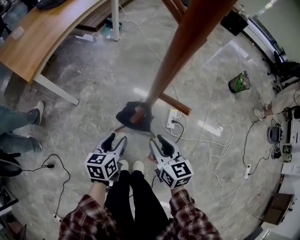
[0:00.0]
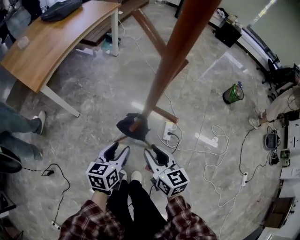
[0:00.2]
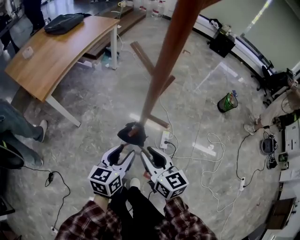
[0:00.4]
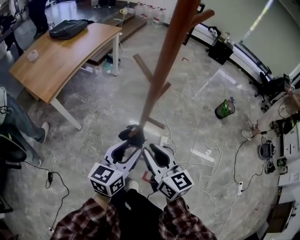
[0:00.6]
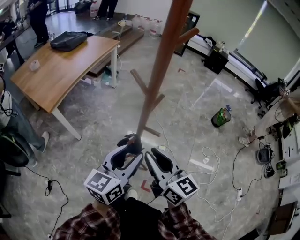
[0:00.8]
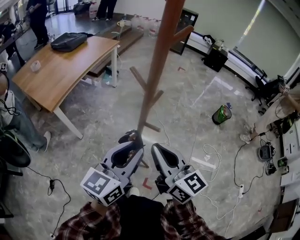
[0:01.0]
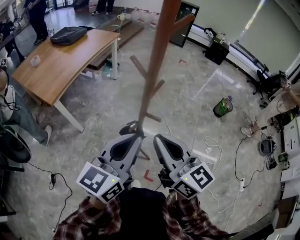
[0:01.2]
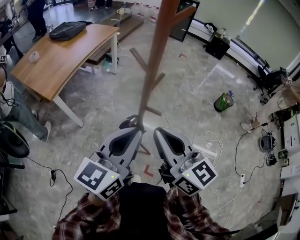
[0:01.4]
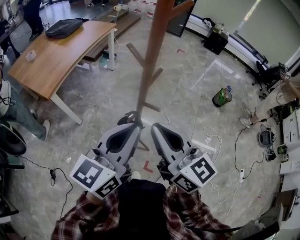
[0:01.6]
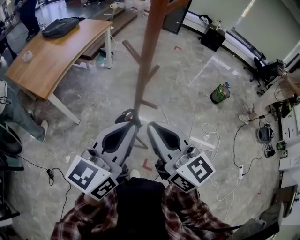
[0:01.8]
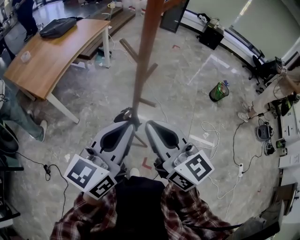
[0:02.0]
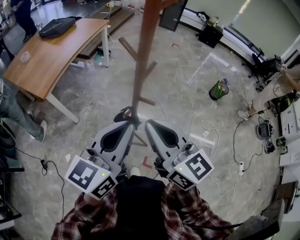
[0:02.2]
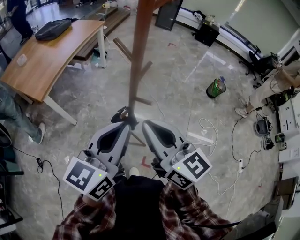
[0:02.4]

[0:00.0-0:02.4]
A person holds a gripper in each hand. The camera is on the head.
0:00.0 to 0:01.2: Both grippers travel together upward, approximately 40 cm. The left gripper tips its fingers upward by some 40 degrees, and closes its fingers; the right gripper rotates roughly 30 degrees, and closes up.
0:01.2 to 0:02.4: The grippers make only small movements.

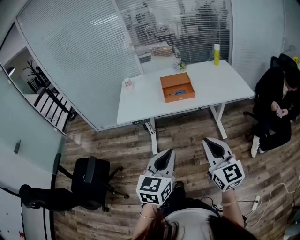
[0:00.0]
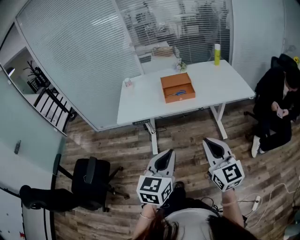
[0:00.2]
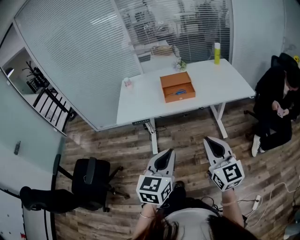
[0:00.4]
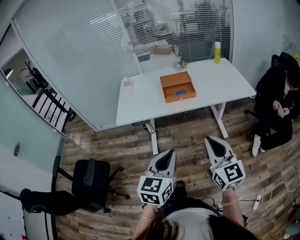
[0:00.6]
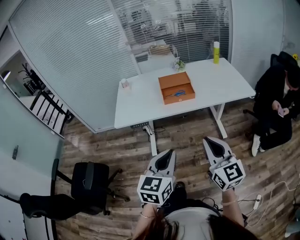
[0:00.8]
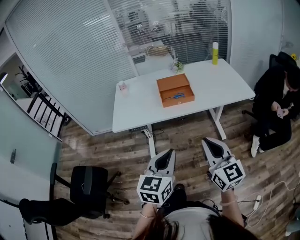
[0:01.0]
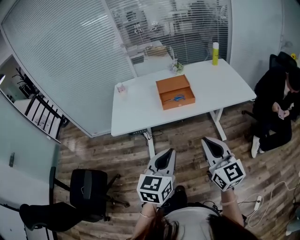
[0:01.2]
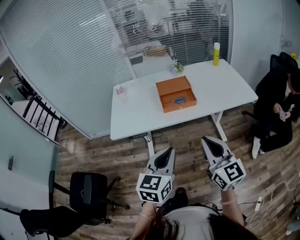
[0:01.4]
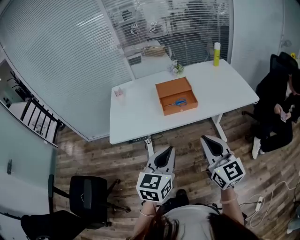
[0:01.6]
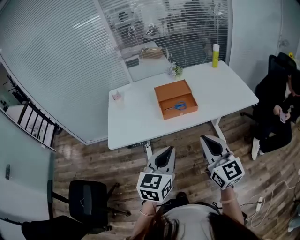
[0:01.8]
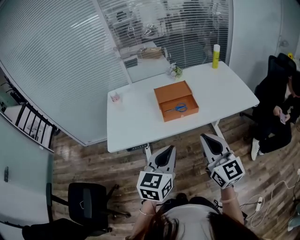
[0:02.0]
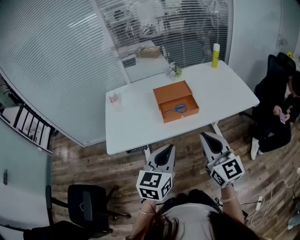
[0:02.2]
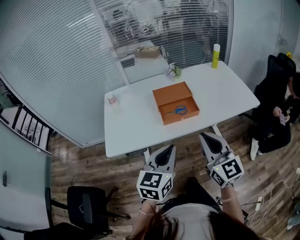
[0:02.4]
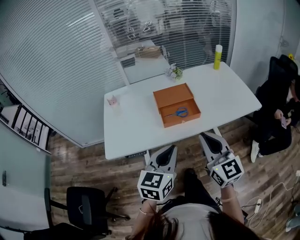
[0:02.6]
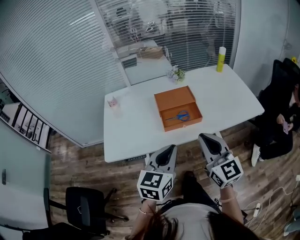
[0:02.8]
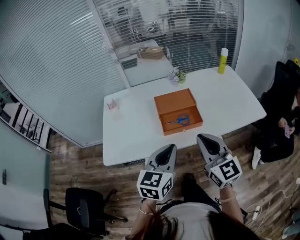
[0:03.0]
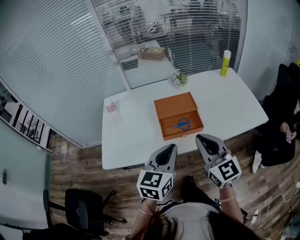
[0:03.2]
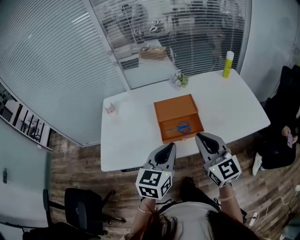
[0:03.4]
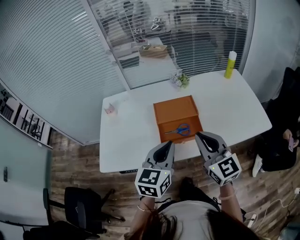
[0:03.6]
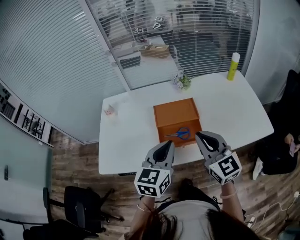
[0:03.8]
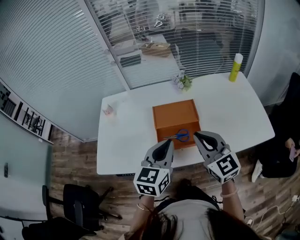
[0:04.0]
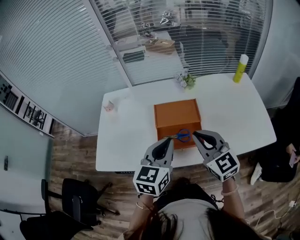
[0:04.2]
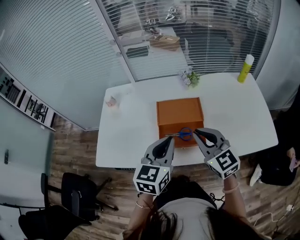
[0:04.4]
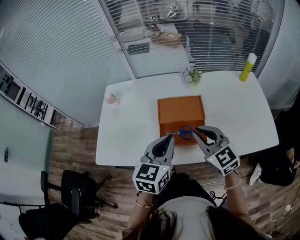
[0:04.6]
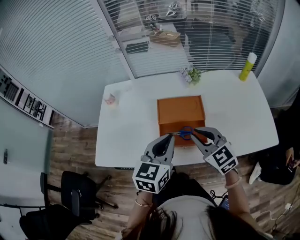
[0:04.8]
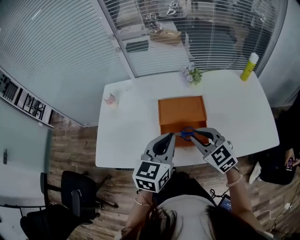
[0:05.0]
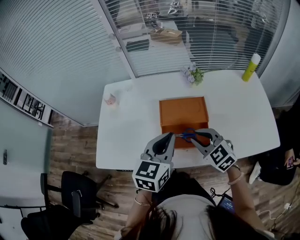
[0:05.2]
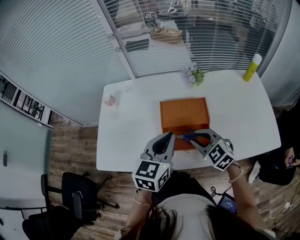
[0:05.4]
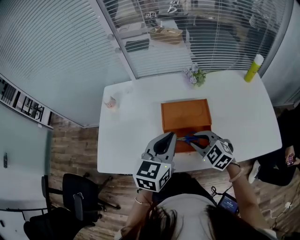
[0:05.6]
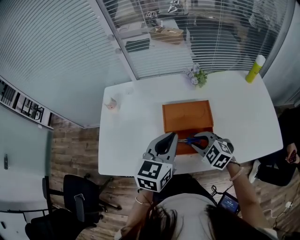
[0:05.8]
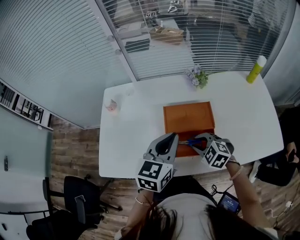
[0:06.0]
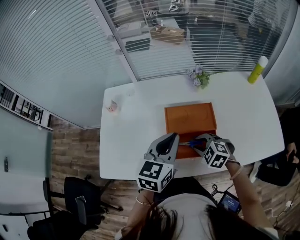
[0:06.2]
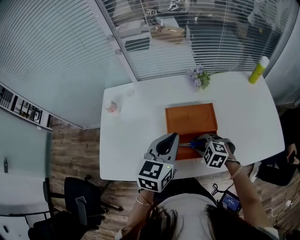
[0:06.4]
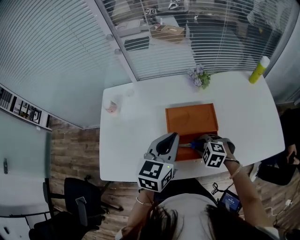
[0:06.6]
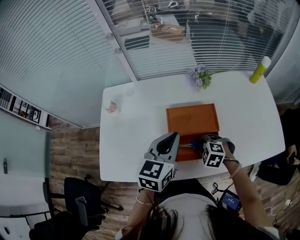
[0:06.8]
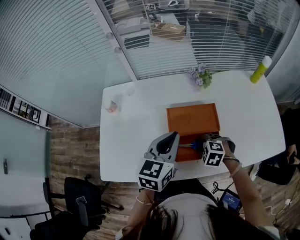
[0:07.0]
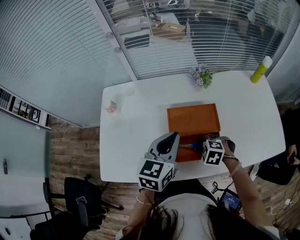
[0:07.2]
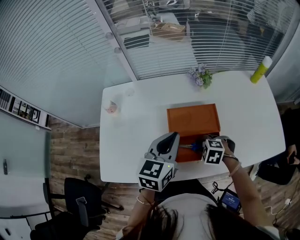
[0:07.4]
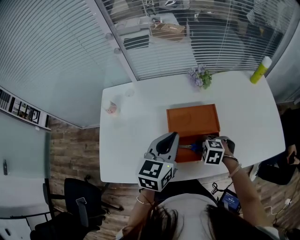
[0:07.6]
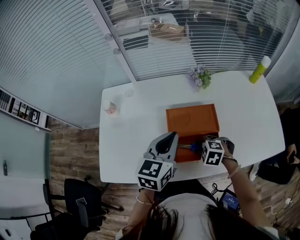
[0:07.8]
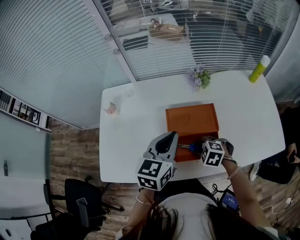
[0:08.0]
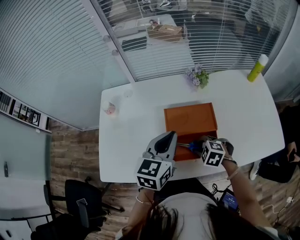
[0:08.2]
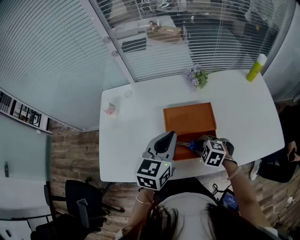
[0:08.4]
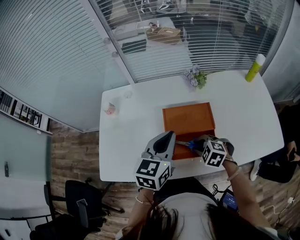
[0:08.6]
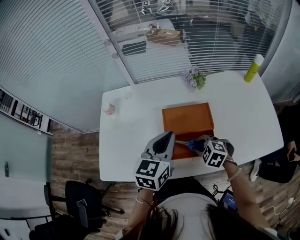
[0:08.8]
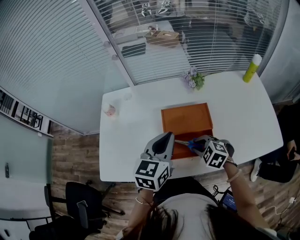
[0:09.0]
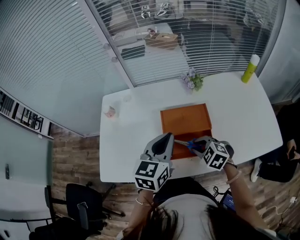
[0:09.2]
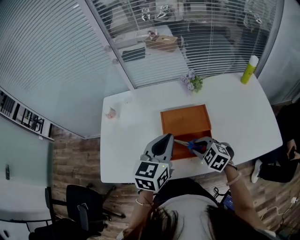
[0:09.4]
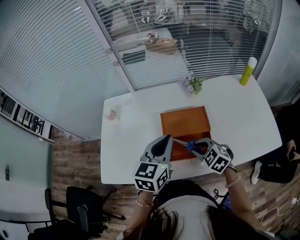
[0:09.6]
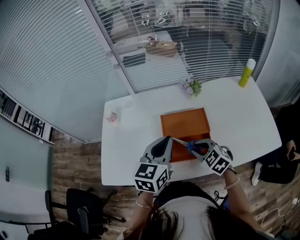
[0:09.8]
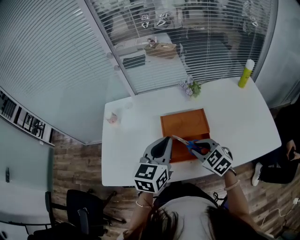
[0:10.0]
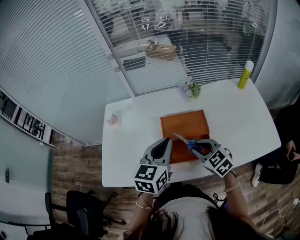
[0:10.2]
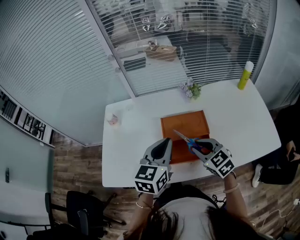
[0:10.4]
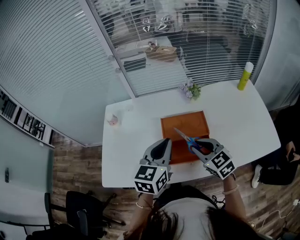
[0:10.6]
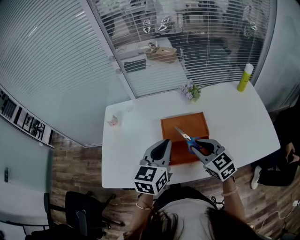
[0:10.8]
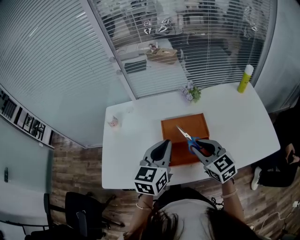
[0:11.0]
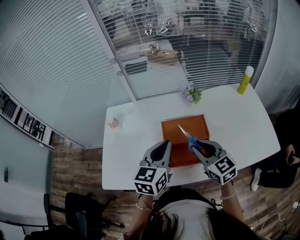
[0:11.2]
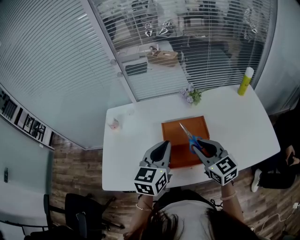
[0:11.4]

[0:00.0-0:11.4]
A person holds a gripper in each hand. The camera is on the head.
0:00.0 to 0:01.4: The two grippers go roughly 15 cm forward.
0:01.4 to 0:02.8: The grippers both shift forward by some 20 cm.
0:02.8 to 0:04.2: Both grippers move forward, approximately 20 cm. The right gripper changes its angle by some 20 degrees.
0:04.2 to 0:05.6: The right gripper goes roughly 15 cm downward and forward, and angles its fingers downward, by approximately 30 degrees; the left gripper travels forward by some 5 cm.
0:05.6 to 0:07.2: The left gripper heads forward, covering approximately 5 cm; the right gripper moves downward, roughly 10 cm, and turns by some 30 degrees.
0:07.2 to 0:08.6: The grippers stay close to where they were, moving slightly.
0:08.6 to 0:10.0: The right gripper moves upward, roughly 10 cm, and changes its angle by about 30 degrees.
0:10.0 to 0:11.4: The right gripper is displaced upward by some 10 cm, and swivels roughly 30 degrees.

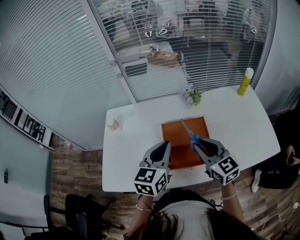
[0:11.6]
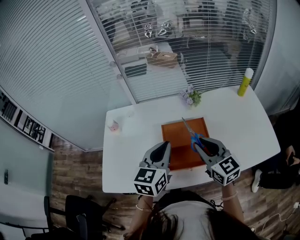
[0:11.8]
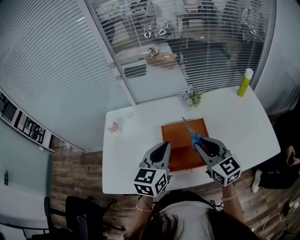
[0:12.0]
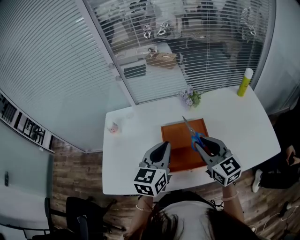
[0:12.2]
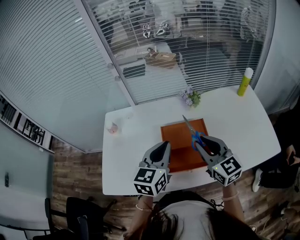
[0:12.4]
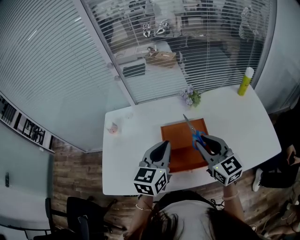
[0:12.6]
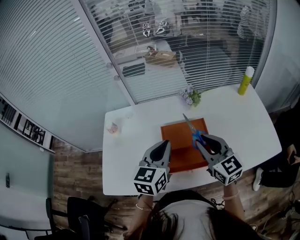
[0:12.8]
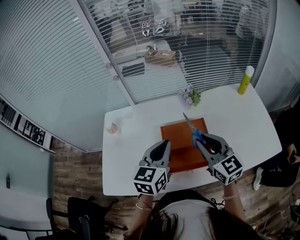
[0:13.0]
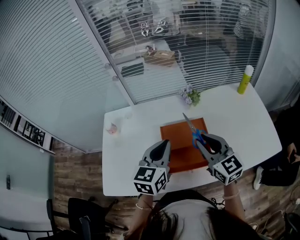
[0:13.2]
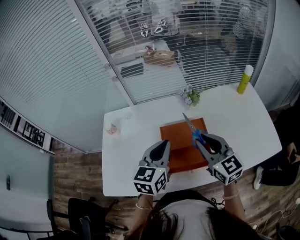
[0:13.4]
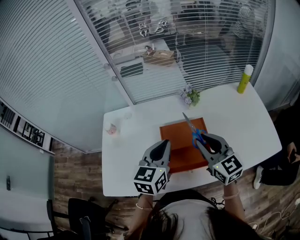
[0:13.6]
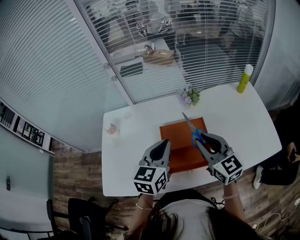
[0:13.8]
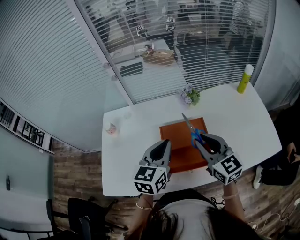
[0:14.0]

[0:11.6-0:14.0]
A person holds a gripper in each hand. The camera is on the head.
0:11.6 to 0:12.8: There are only small adjustments of the grippers.
0:12.8 to 0:14.0: Both grippers stay about where they are.

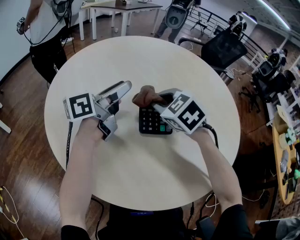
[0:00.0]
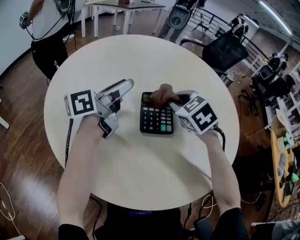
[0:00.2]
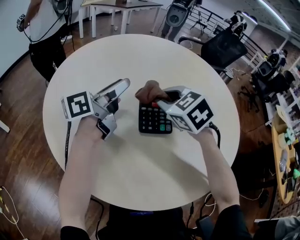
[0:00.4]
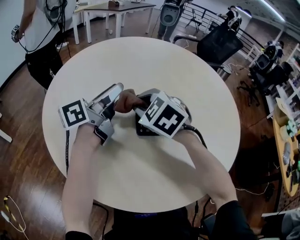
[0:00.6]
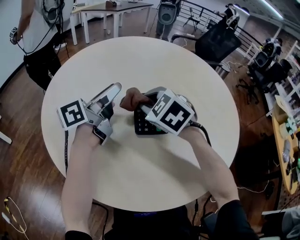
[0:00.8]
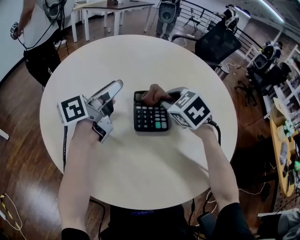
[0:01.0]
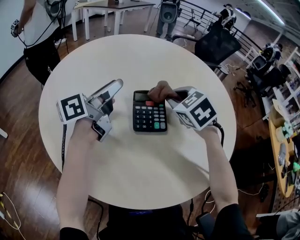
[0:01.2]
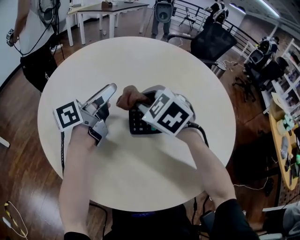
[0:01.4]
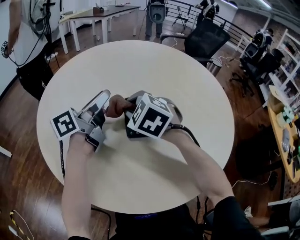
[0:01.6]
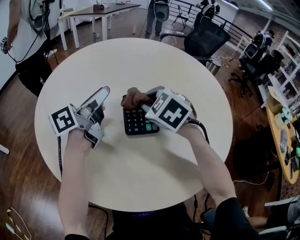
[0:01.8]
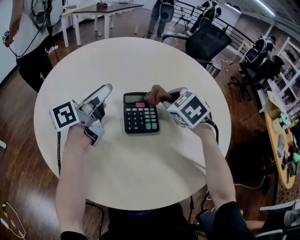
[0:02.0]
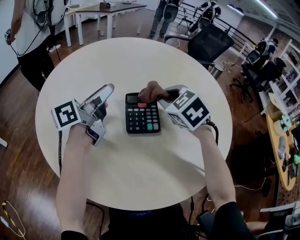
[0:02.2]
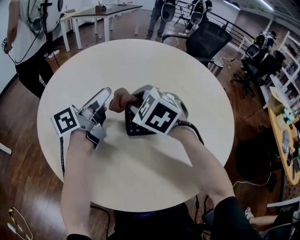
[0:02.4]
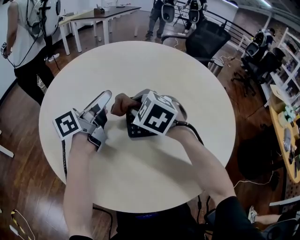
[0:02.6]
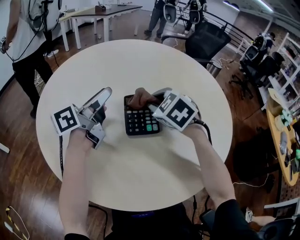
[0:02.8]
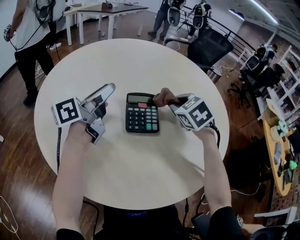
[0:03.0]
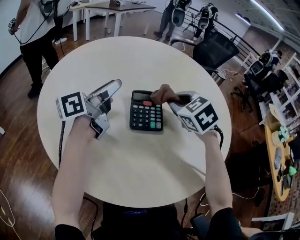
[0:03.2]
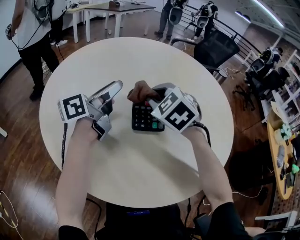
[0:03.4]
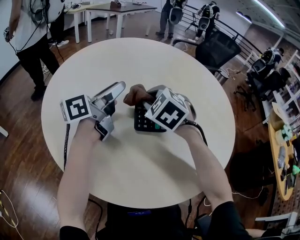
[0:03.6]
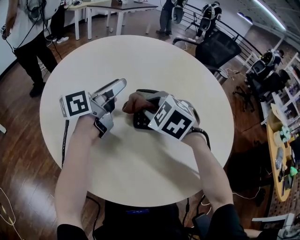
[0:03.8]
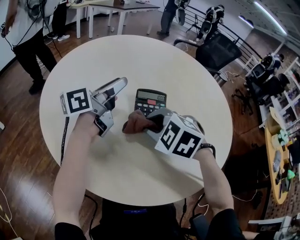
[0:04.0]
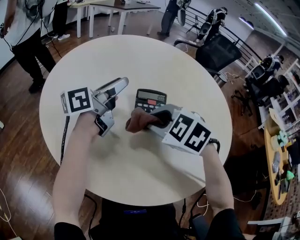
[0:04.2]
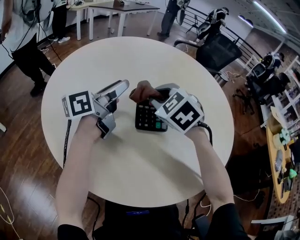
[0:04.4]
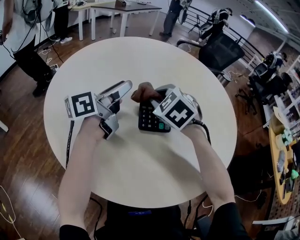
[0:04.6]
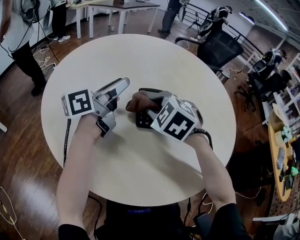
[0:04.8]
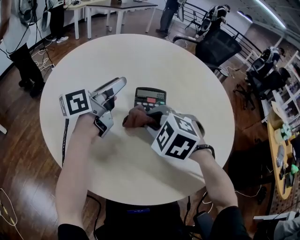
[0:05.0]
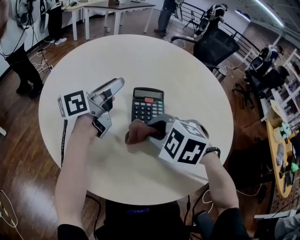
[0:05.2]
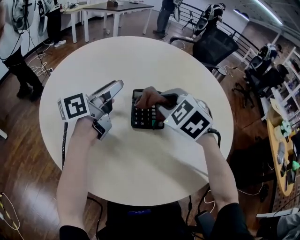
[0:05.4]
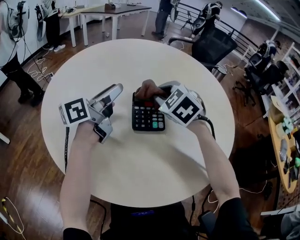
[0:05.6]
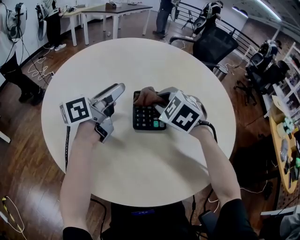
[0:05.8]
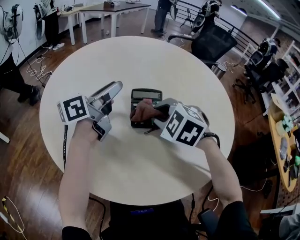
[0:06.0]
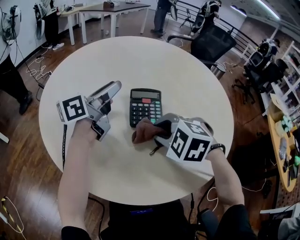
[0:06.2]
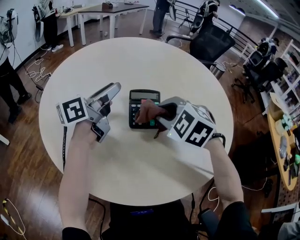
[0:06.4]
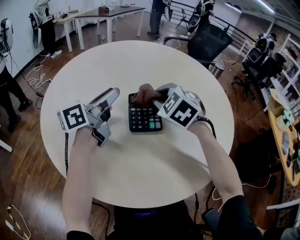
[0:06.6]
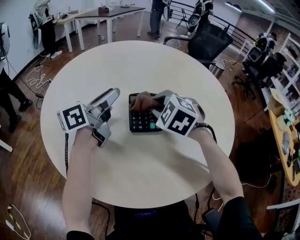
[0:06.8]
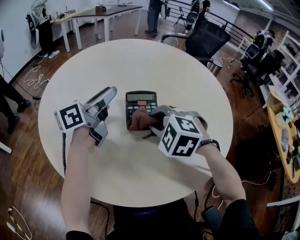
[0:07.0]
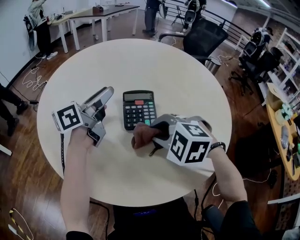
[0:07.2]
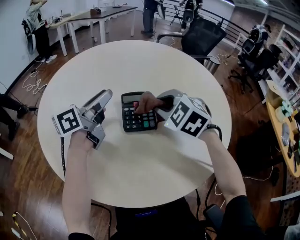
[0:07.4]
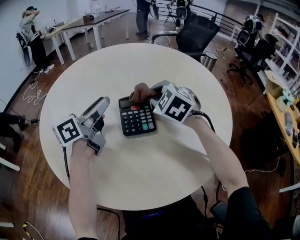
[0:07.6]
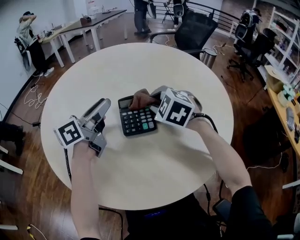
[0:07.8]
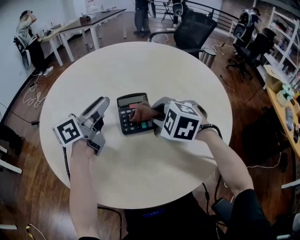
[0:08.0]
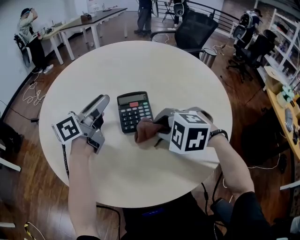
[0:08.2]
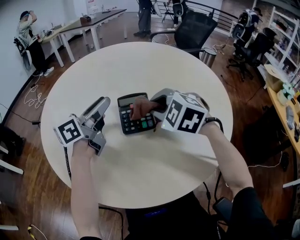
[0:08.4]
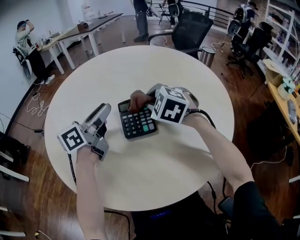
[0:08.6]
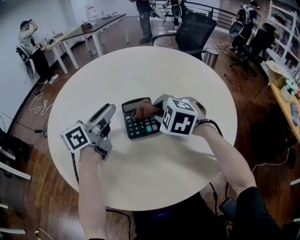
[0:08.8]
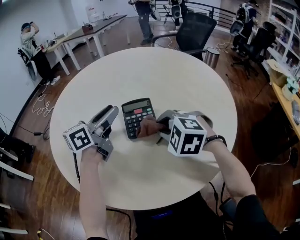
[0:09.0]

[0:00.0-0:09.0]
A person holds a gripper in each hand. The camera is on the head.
0:00.0 to 0:01.6: The right gripper swings left and right, roughly 15 cm each way, with 3 reversals.
0:01.6 to 0:03.0: The right gripper goes left and right, some 15 cm each way, reversing 2 times, and swivels roughly 20 degrees.
0:03.0 to 0:04.4: The right gripper shifts approximately 15 cm to the left.
0:04.4 to 0:06.0: The right gripper goes forward and backward, approximately 15 cm each way, reversing 2 times.
0:06.0 to 0:07.6: The right gripper swings forward and backward, about 15 cm each way, with 3 reversals.
0:07.6 to 0:09.0: The right gripper moves forward and backward over some 15 cm, changing direction 2 times.
